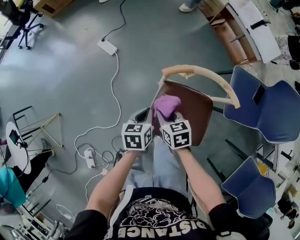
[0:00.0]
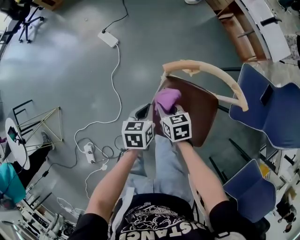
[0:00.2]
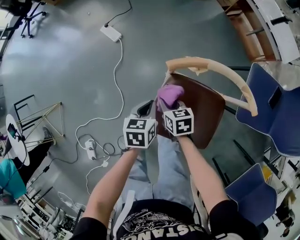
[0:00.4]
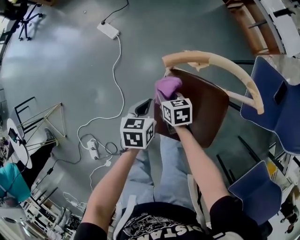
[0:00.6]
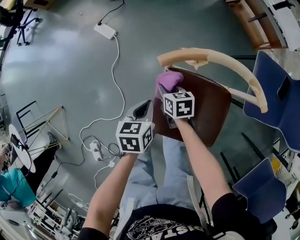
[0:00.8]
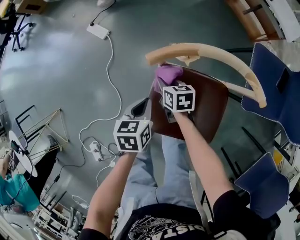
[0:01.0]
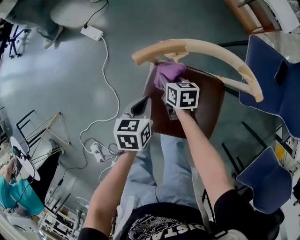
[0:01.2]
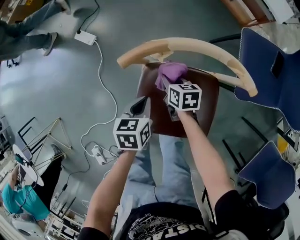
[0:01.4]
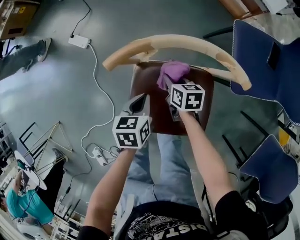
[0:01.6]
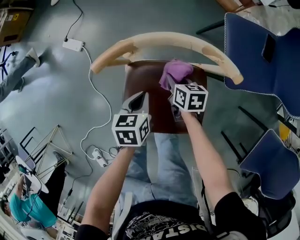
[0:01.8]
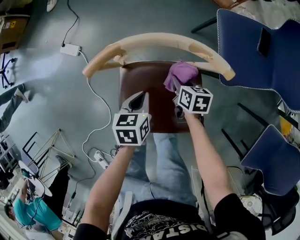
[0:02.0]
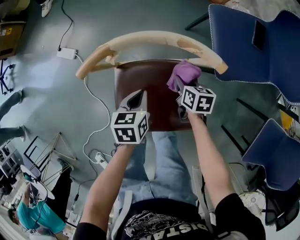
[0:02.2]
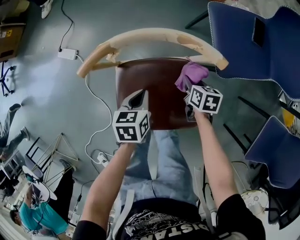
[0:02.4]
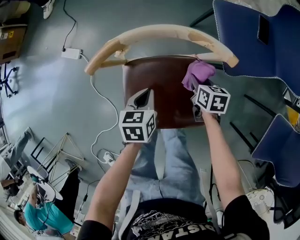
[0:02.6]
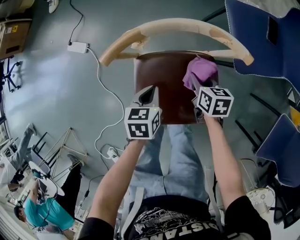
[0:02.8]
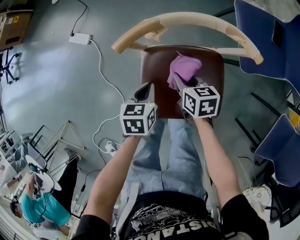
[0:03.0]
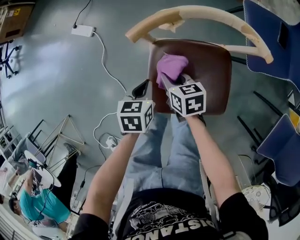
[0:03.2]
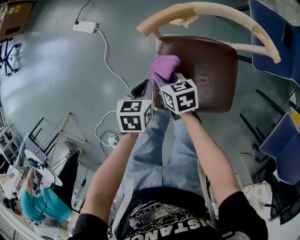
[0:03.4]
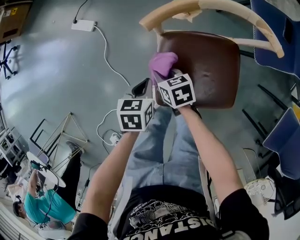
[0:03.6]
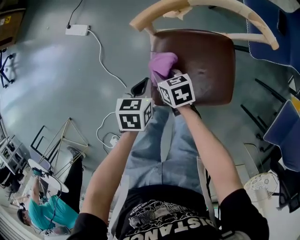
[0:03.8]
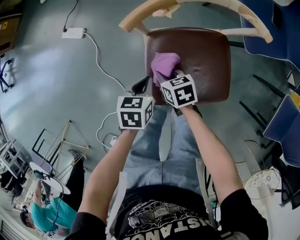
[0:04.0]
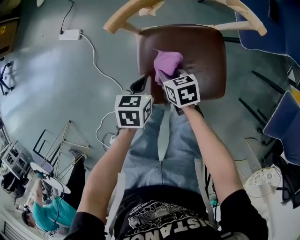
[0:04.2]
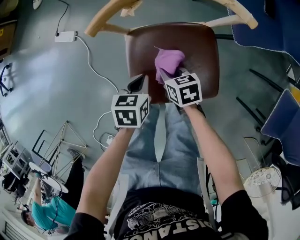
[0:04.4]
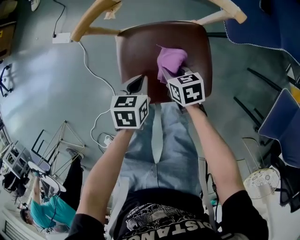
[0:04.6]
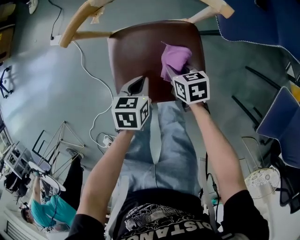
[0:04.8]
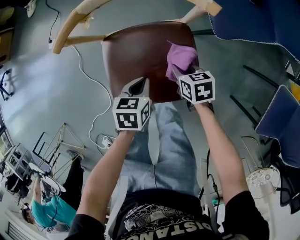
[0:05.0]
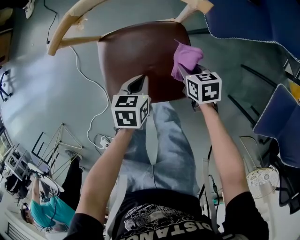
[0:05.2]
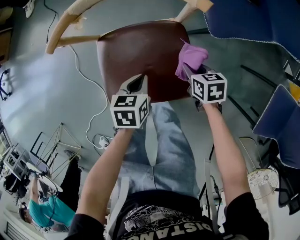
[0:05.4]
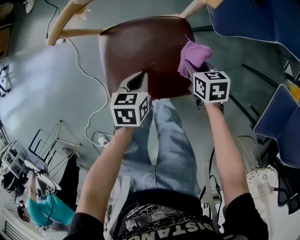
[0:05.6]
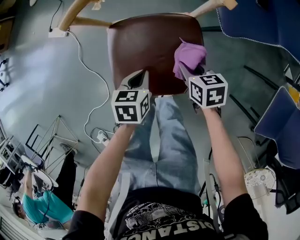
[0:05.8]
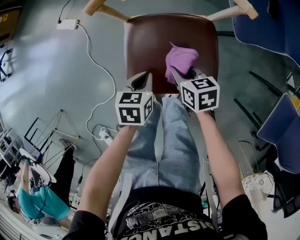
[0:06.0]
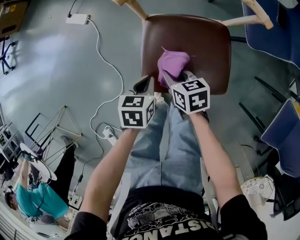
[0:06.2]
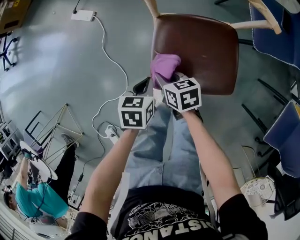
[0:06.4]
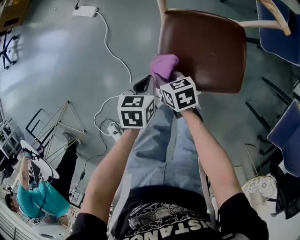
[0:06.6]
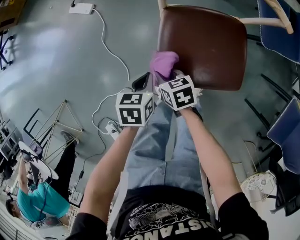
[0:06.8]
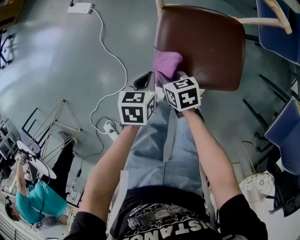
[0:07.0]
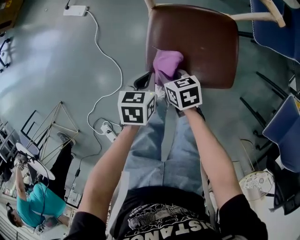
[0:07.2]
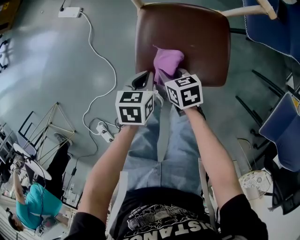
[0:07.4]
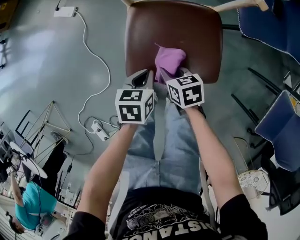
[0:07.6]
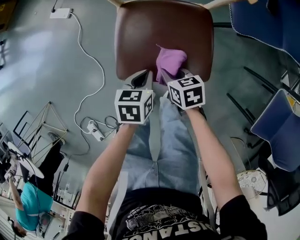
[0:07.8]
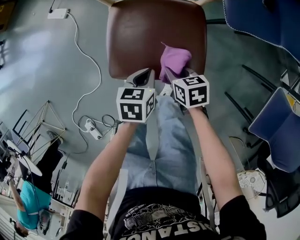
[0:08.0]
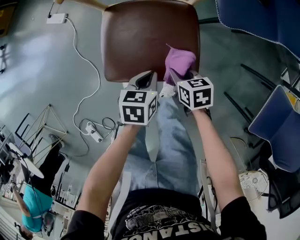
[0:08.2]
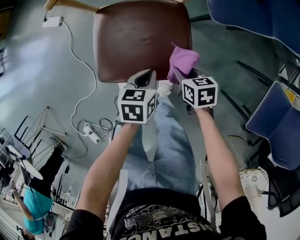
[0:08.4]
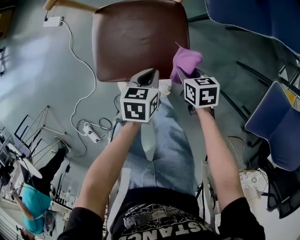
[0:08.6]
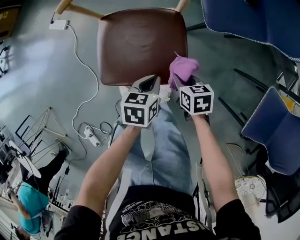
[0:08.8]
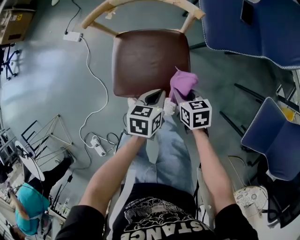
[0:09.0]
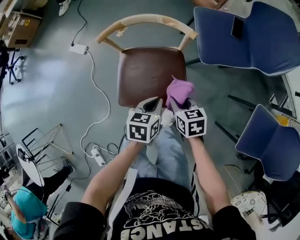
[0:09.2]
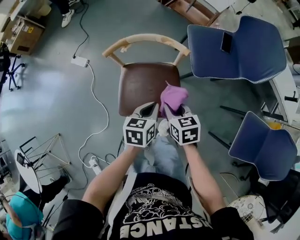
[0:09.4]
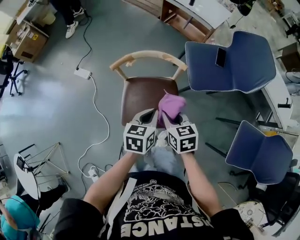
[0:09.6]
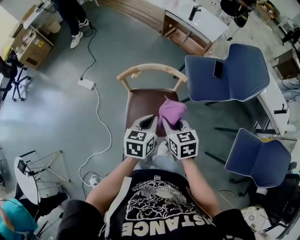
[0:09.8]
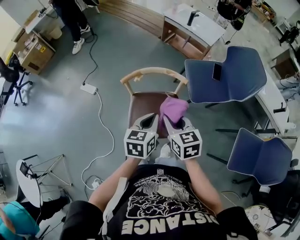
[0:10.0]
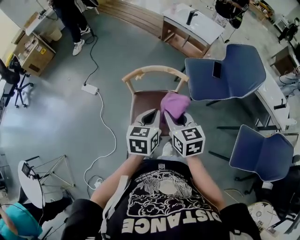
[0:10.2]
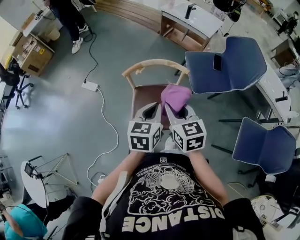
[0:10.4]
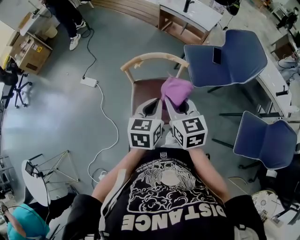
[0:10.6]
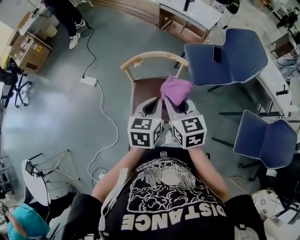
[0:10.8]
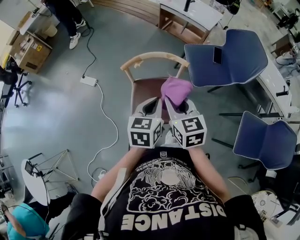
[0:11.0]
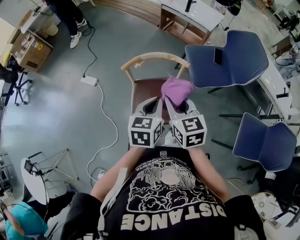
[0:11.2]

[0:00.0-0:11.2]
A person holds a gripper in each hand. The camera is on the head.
0:00.0 to 0:01.6: The left gripper travels to the right and downward by approximately 15 cm; the right gripper shifts about 25 cm downward and to the right, and turns by roughly 30 degrees.
0:01.6 to 0:03.2: The left gripper travels to the left by some 5 cm; the right gripper goes approximately 10 cm to the left and backward.
0:03.2 to 0:04.8: The right gripper moves to the right, roughly 15 cm. The left gripper travels to the right and backward by some 15 cm.
0:04.8 to 0:06.4: Both grippers move to the left, approximately 20 cm.
0:06.4 to 0:08.0: The right gripper travels to the right and backward by some 20 cm, while the left gripper heads to the right, covering about 15 cm.
0:08.0 to 0:09.6: The grippers both shift upward by some 25 cm. The right gripper changes its angle by approximately 20 degrees.
0:09.6 to 0:11.2: The grippers both shift upward by about 10 cm.

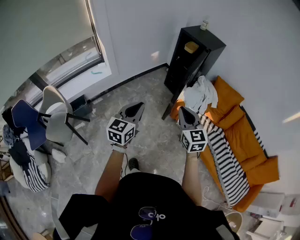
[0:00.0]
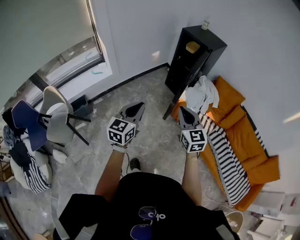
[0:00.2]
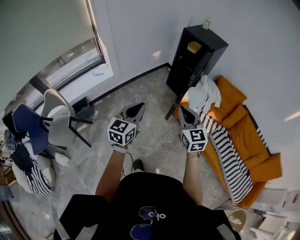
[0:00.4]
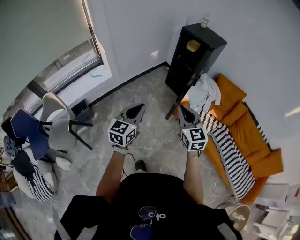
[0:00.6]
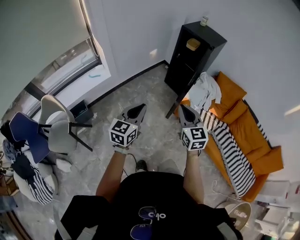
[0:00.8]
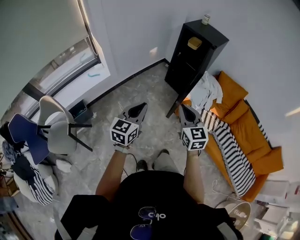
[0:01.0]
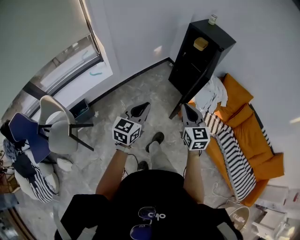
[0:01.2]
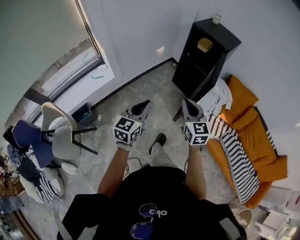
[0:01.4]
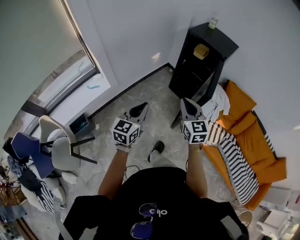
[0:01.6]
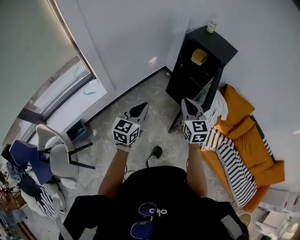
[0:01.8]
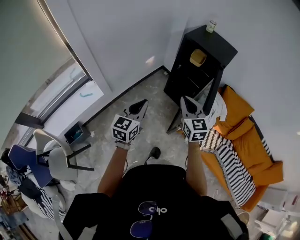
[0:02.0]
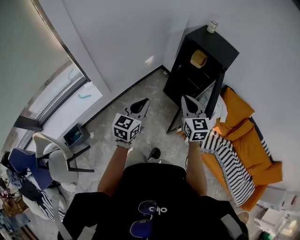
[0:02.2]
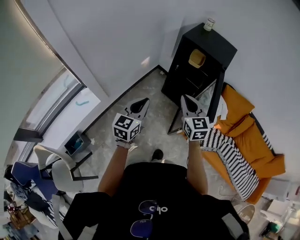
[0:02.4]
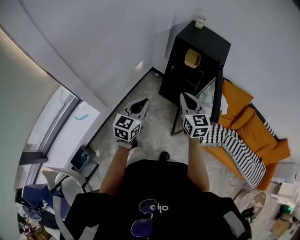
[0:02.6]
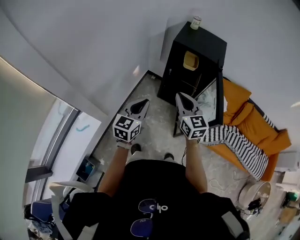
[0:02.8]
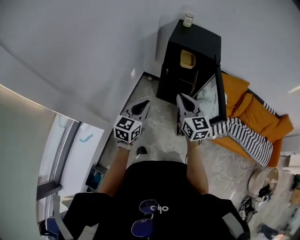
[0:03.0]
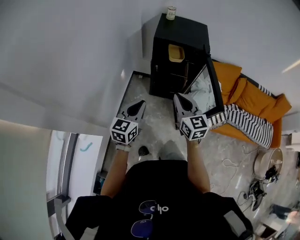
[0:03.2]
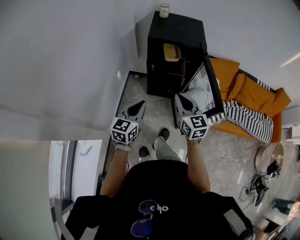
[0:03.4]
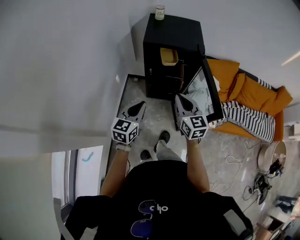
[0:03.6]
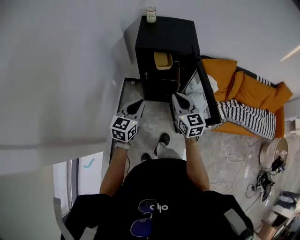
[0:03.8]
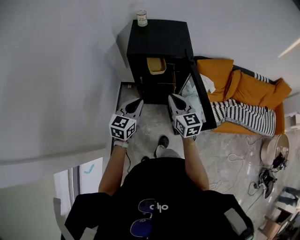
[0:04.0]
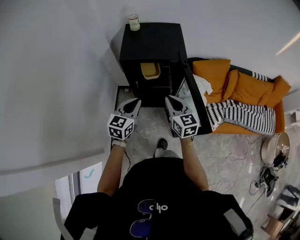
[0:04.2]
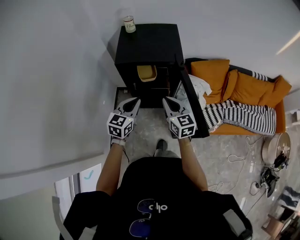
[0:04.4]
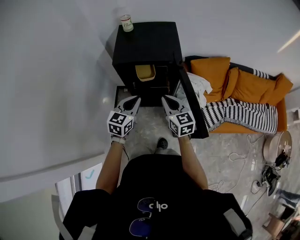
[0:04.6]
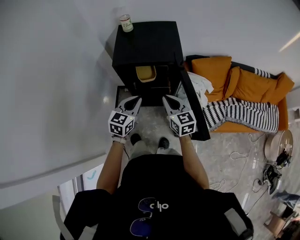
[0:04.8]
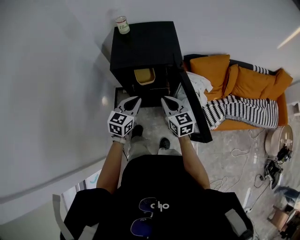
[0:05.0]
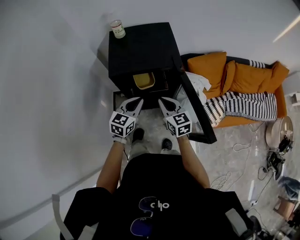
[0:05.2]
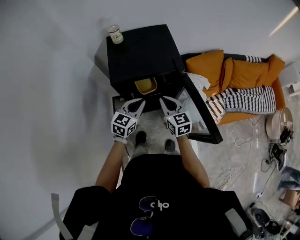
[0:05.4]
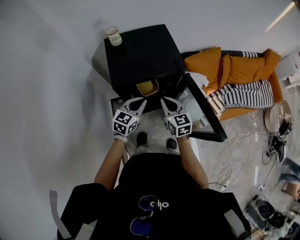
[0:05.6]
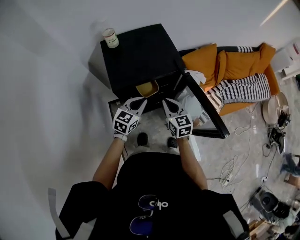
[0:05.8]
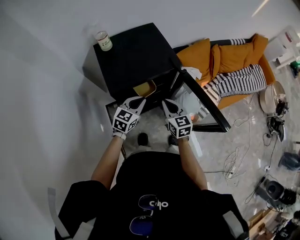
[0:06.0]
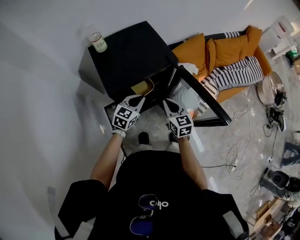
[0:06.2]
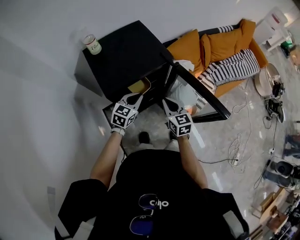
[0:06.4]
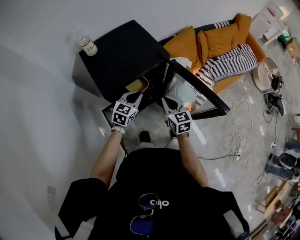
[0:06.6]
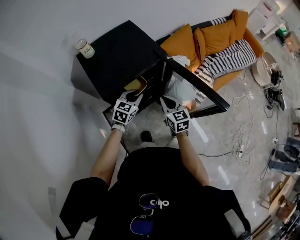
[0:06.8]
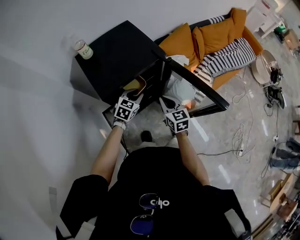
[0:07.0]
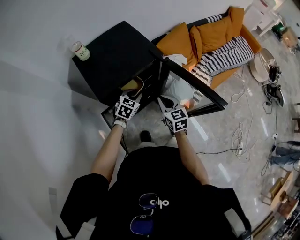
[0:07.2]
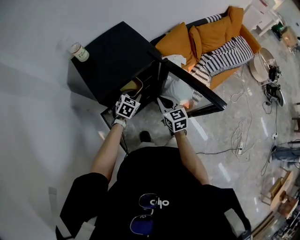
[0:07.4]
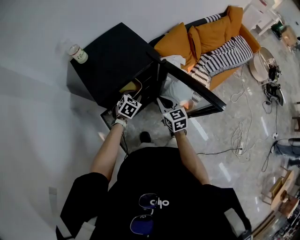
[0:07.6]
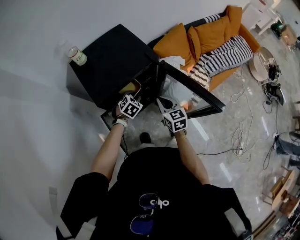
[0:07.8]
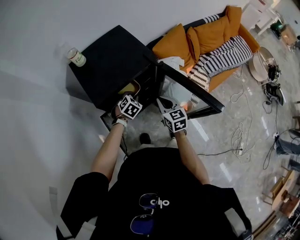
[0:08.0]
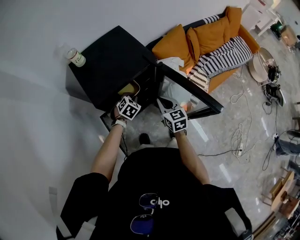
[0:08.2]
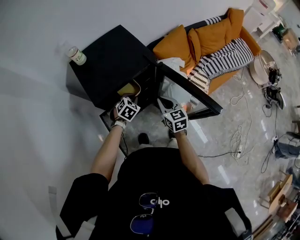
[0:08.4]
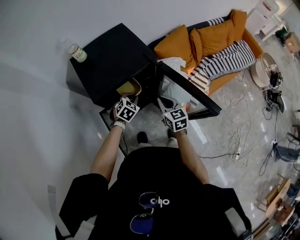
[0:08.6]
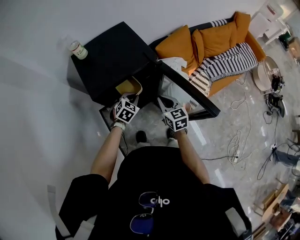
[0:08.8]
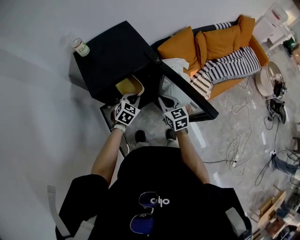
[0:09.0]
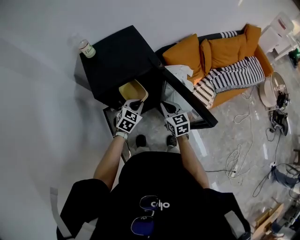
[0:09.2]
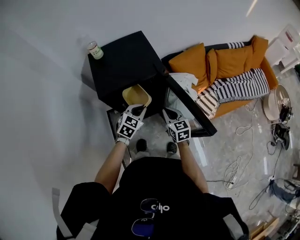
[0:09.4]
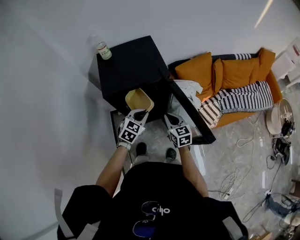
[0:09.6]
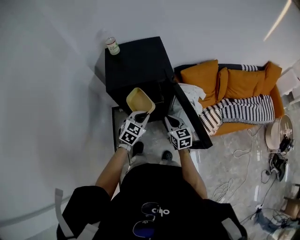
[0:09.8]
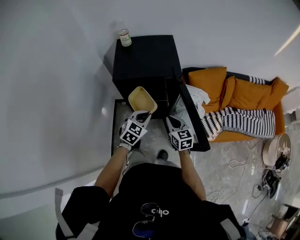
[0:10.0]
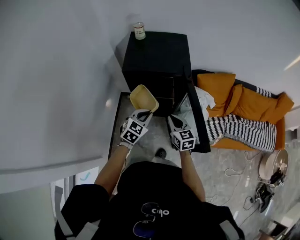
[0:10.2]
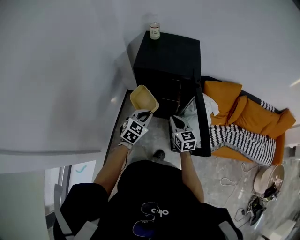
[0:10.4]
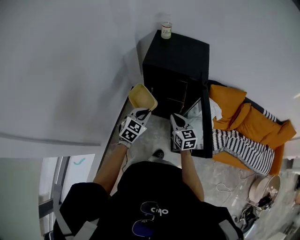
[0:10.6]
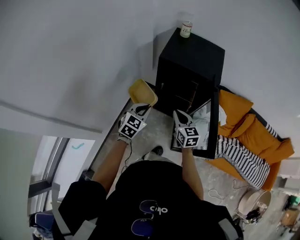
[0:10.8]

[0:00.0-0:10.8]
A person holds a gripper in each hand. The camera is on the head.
0:00.0 to 0:01.6: Both grippers travel together forward and to the left, some 30 cm.
0:01.6 to 0:03.0: The right gripper moves roughly 30 cm, and swivels about 20 degrees, while the left gripper moves about 35 cm, and changes its angle by about 30 degrees.
0:03.0 to 0:04.6: The right gripper is displaced forward, to the right and downward by about 25 cm, while the left gripper goes roughly 30 cm forward and to the right.
0:04.6 to 0:06.2: The right gripper changes place by about 10 cm, and rotates about 30 degrees. Meanwhile the left gripper ends up roughly 15 cm from where it was, and changes its angle by roughly 40 degrees.
0:06.2 to 0:07.8: The left gripper heads downward, covering some 10 cm, and turns by some 40 degrees.
0:07.8 to 0:09.2: The left gripper moves upward and backward, some 10 cm.
0:09.2 to 0:10.8: The right gripper shifts by approximately 10 cm, and rotates about 40 degrees, while the left gripper changes place by some 20 cm, and swivels some 50 degrees.

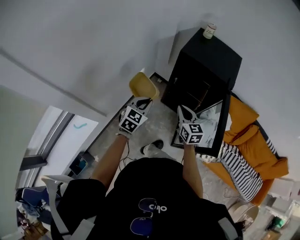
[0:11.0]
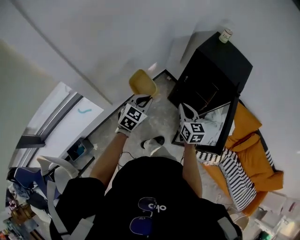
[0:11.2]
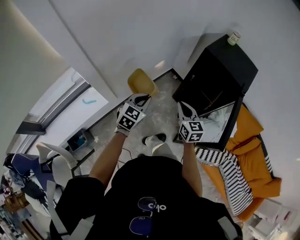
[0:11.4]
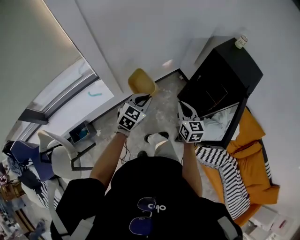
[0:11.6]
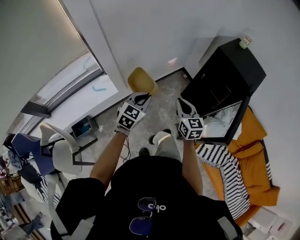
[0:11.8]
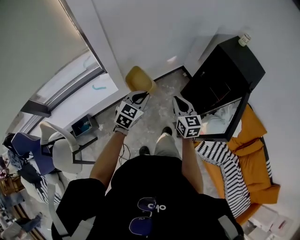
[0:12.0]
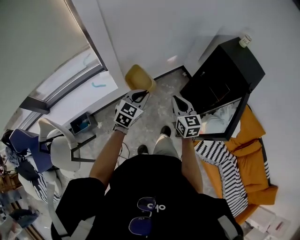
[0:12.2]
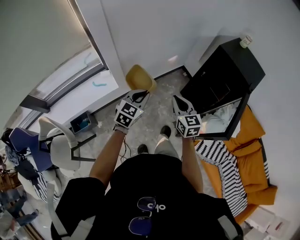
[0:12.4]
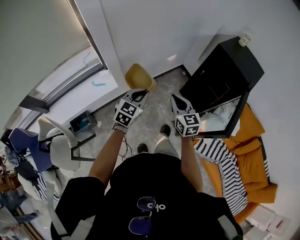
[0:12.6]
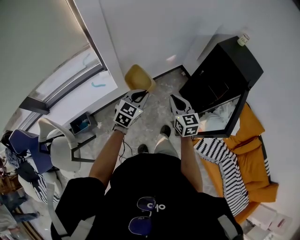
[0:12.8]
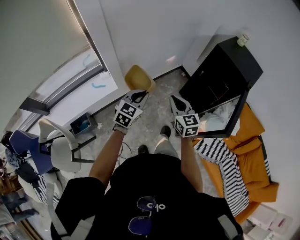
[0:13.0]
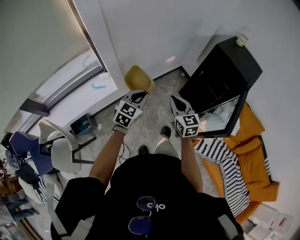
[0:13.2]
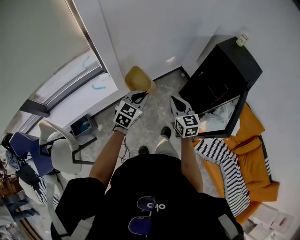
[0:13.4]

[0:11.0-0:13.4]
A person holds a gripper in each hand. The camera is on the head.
0:11.0 to 0:12.2: The right gripper is displaced to the left and backward by some 25 cm, and changes its angle by roughly 30 degrees. Meanwhile the left gripper moves backward and to the left, approximately 25 cm, and rotates about 20 degrees.
0:12.2 to 0:13.4: The grippers move only a little.
